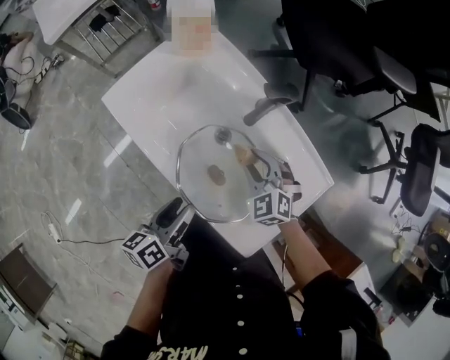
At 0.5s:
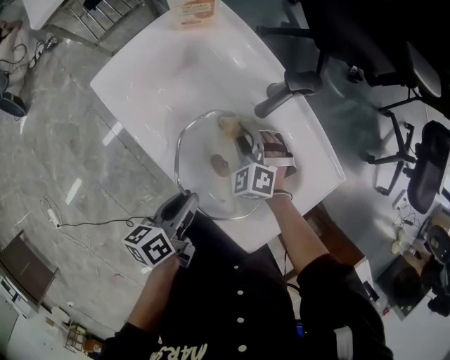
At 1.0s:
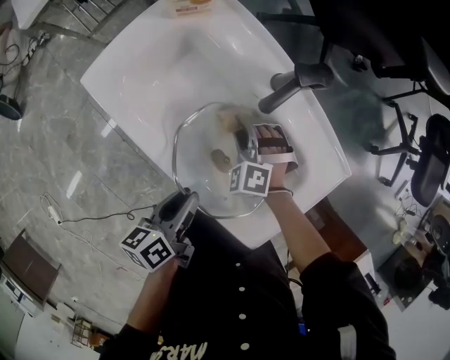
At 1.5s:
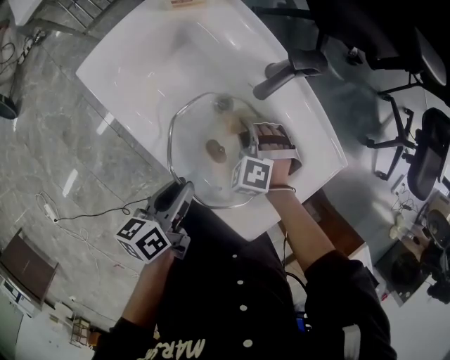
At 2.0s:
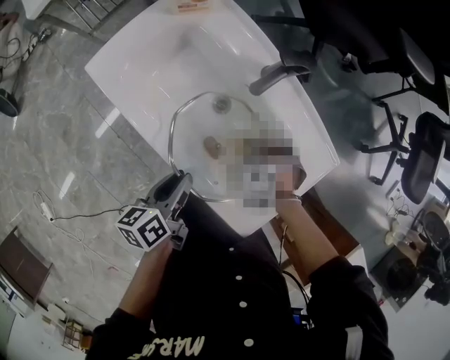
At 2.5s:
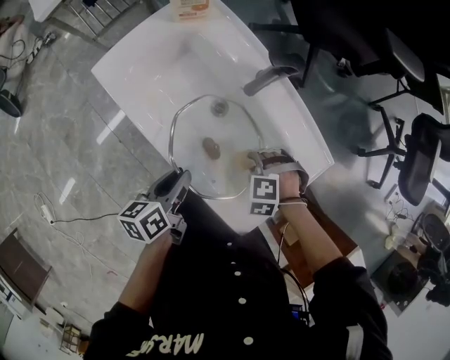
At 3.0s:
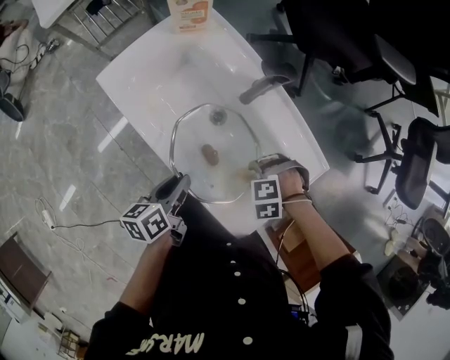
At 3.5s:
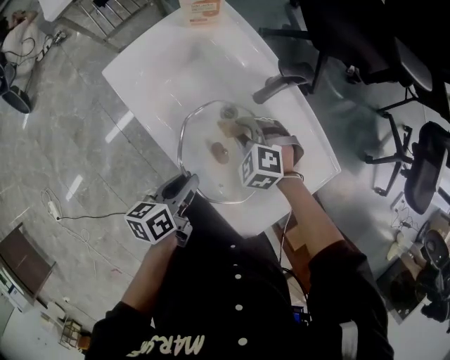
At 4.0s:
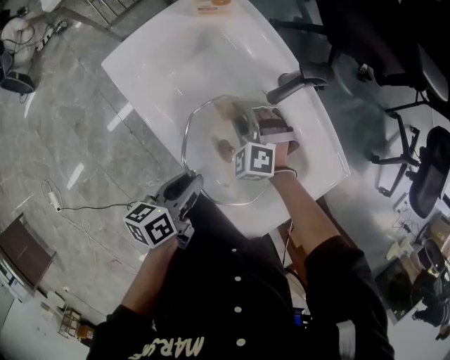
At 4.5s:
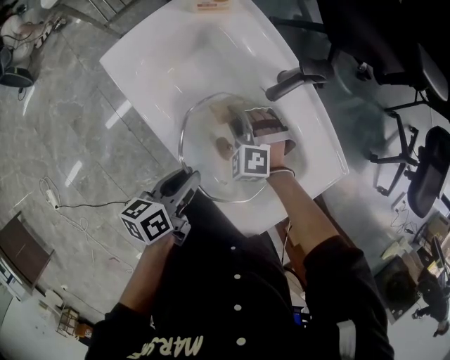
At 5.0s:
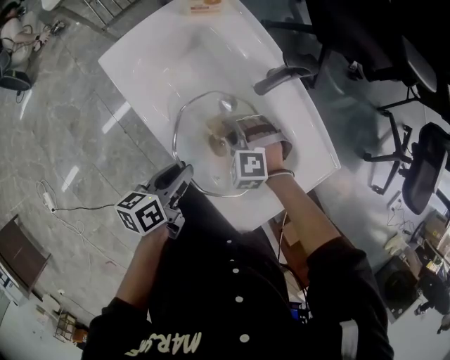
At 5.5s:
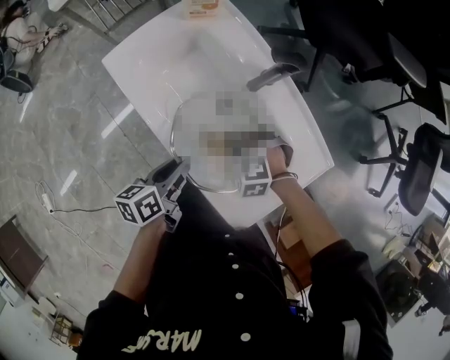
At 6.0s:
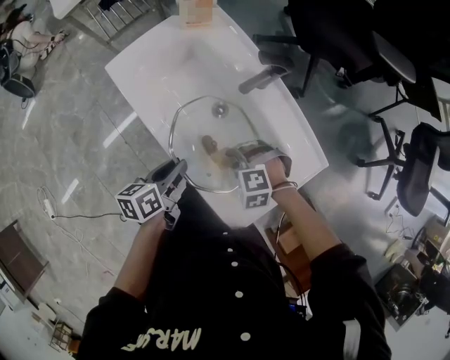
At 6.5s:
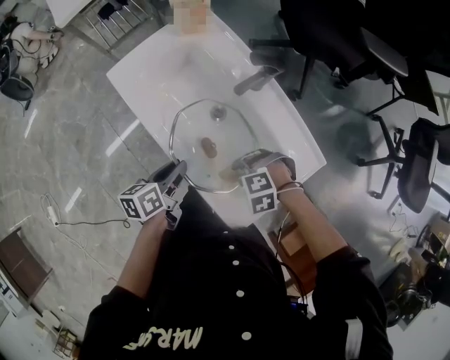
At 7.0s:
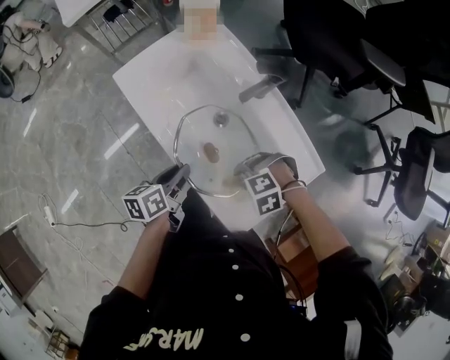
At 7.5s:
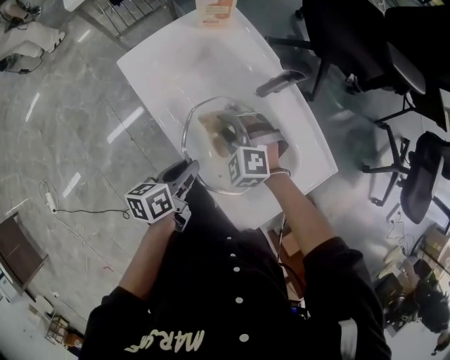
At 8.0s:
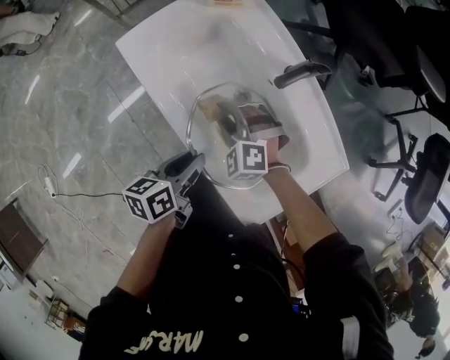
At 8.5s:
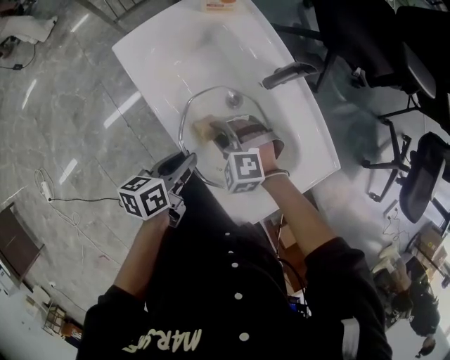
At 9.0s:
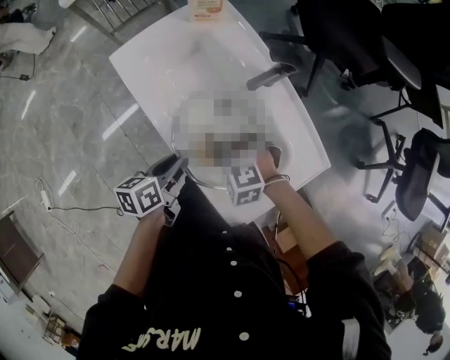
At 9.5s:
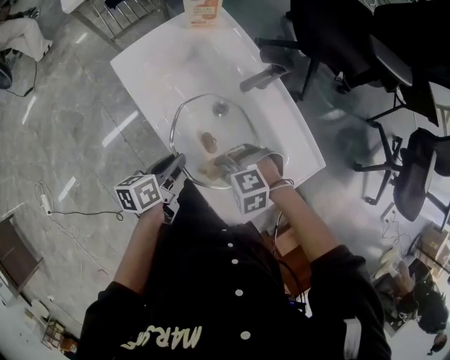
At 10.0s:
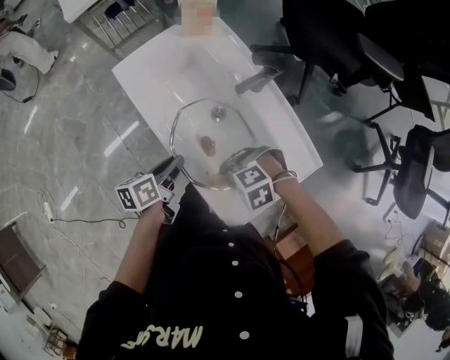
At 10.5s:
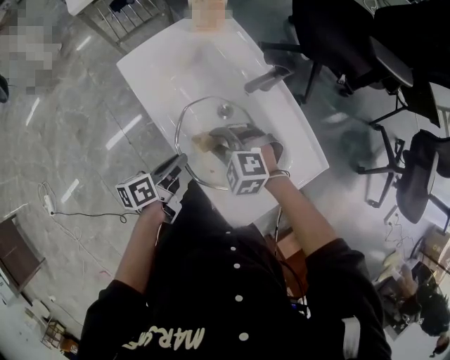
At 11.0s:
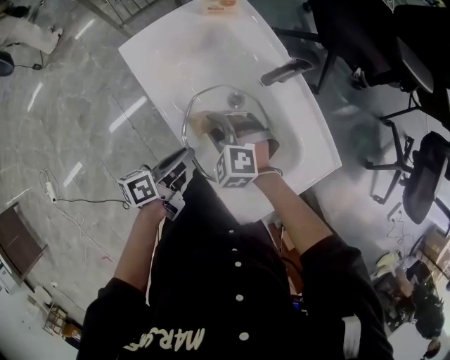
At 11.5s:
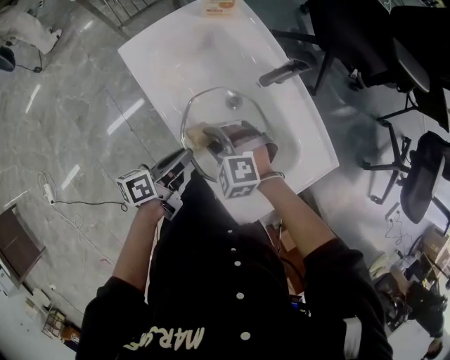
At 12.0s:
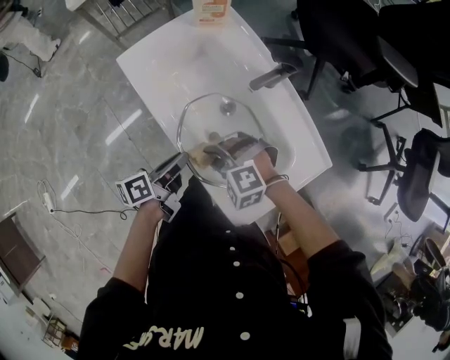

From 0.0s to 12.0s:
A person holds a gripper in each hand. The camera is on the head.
From 0.0s to 2.0s: The left gripper closes up, while the right gripper heads downward, covering some 10 cm, and tips its fingers downward by approximately 30 degrees.
From 2.0s to 4.0s: The right gripper ends up roughly 15 cm from where it was, and swivels some 30 degrees.
From 4.0s to 6.0s: The right gripper moves backward, roughly 15 cm, and rotates approximately 30 degrees.
From 6.0s to 8.0s: The right gripper ends up about 15 cm from where it was, and rotates about 30 degrees.
From 8.0s to 10.0s: The right gripper ends up approximately 20 cm from where it was, and turns by approximately 50 degrees.
From 10.0s to 12.0s: The right gripper swivels approximately 20 degrees.

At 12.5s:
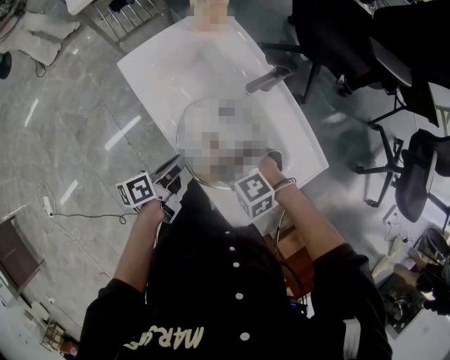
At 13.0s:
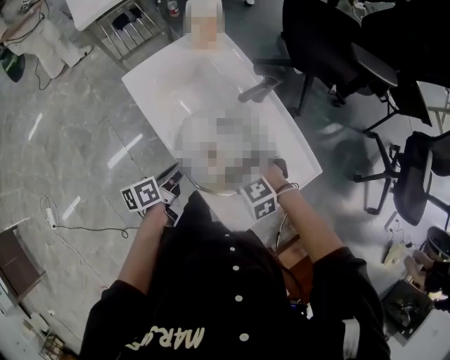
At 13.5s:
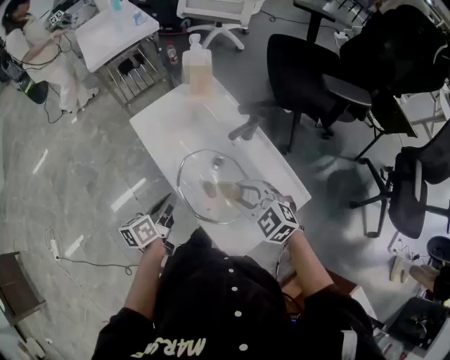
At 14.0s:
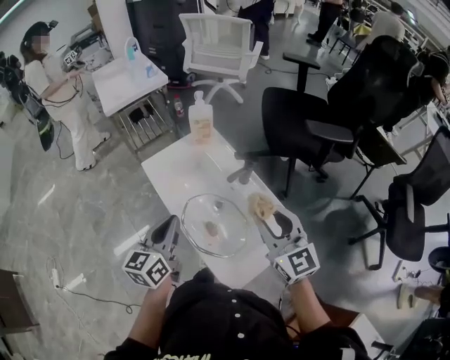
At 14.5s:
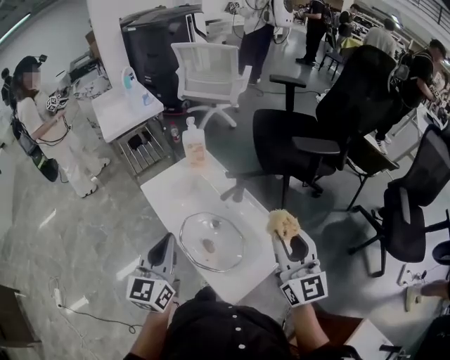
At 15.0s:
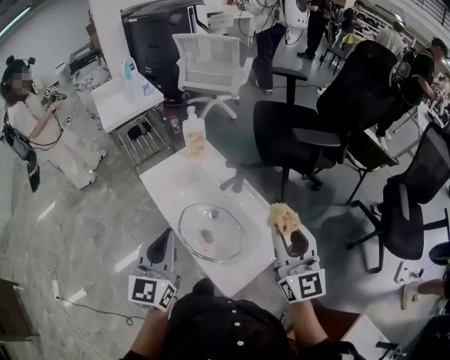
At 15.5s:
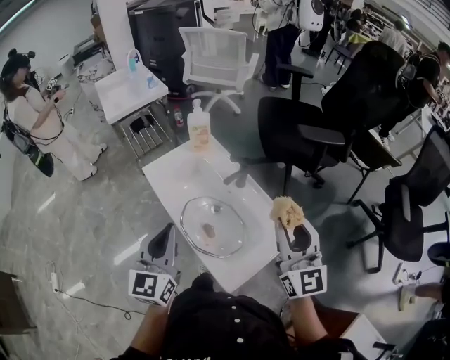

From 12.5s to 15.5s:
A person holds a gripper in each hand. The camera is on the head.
From 12.5s to 14.0s: Both grippers move upward, about 25 cm. The right gripper points its fingers approximately 60 degrees further upward. Meanwhile the left gripper rotates around the line of its fingers by roughly 50 degrees, clockwise from behind.
From 14.0s to 15.5s: The left gripper moves upward and backward, some 10 cm, and turns by roughly 20 degrees, while the right gripper is displaced to the right, upward and backward by roughly 10 cm.

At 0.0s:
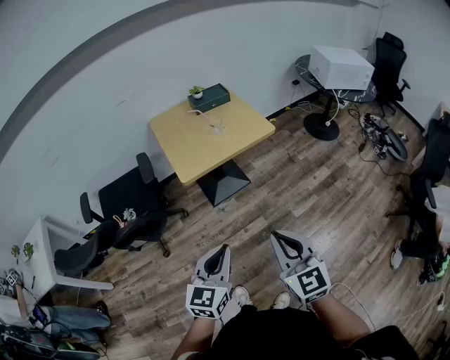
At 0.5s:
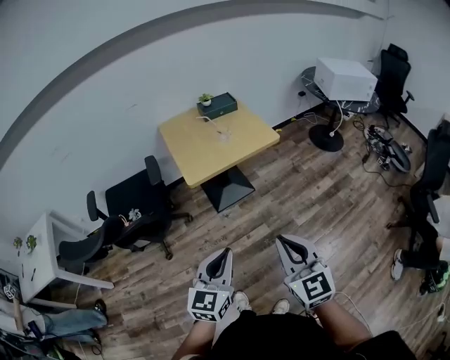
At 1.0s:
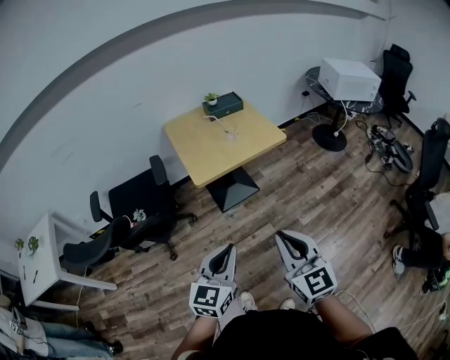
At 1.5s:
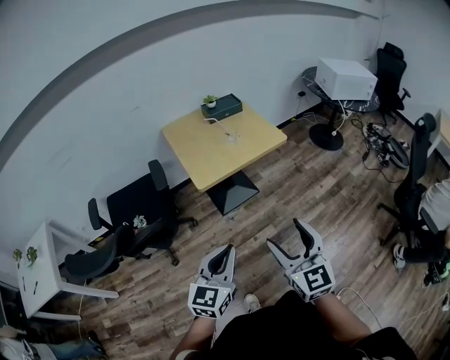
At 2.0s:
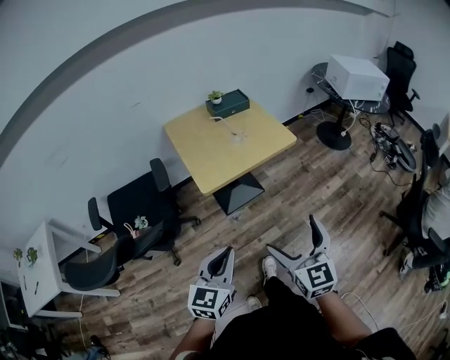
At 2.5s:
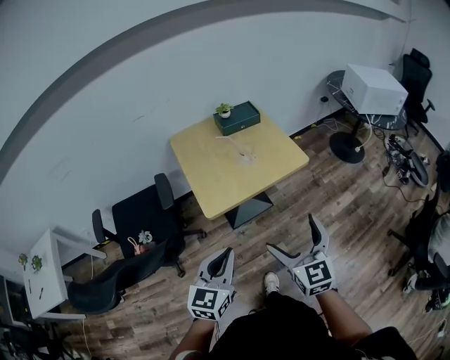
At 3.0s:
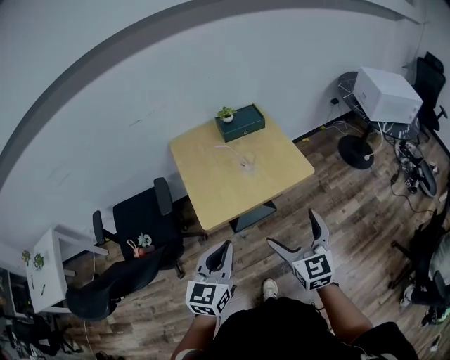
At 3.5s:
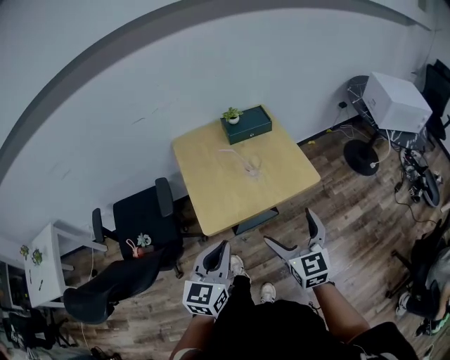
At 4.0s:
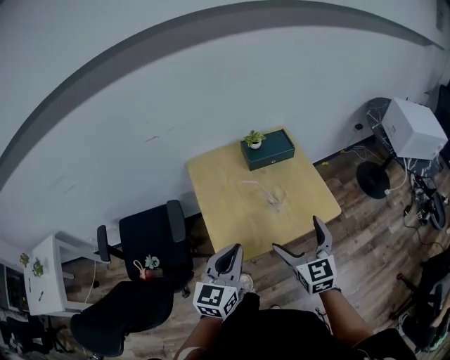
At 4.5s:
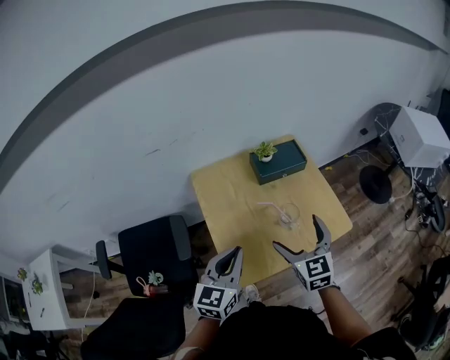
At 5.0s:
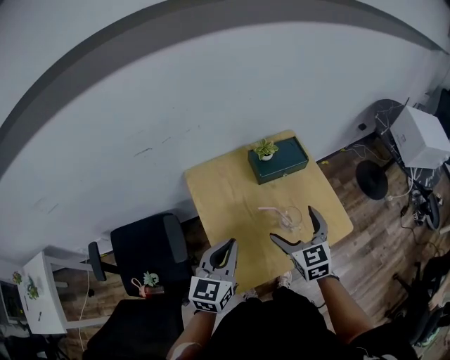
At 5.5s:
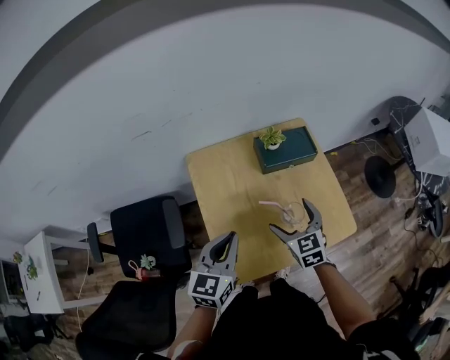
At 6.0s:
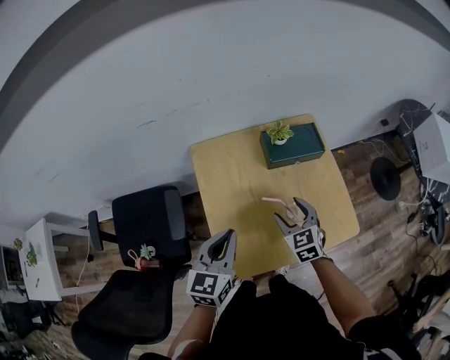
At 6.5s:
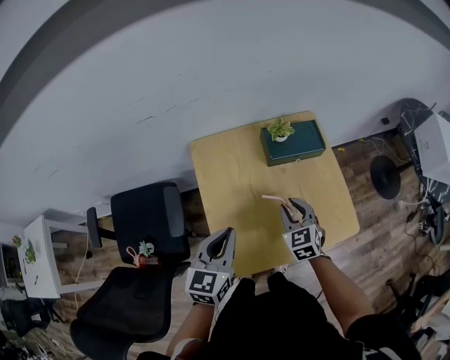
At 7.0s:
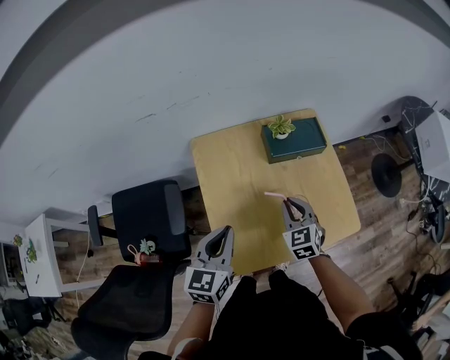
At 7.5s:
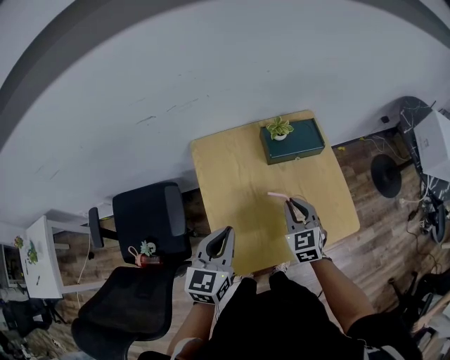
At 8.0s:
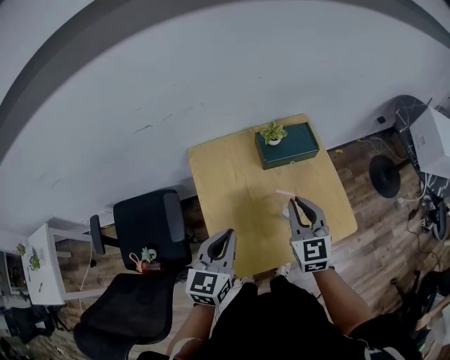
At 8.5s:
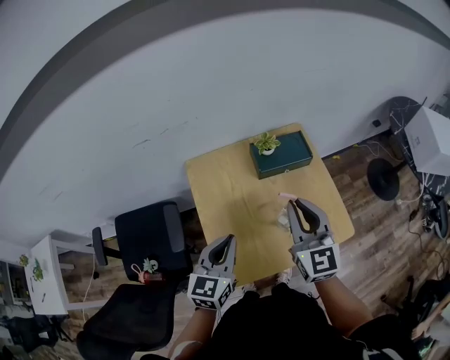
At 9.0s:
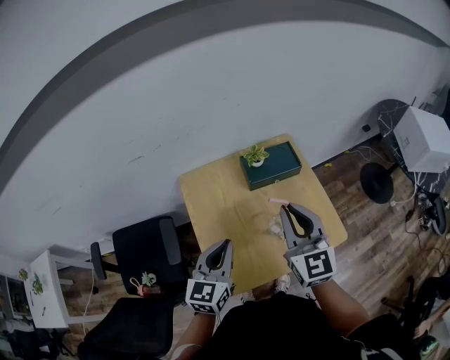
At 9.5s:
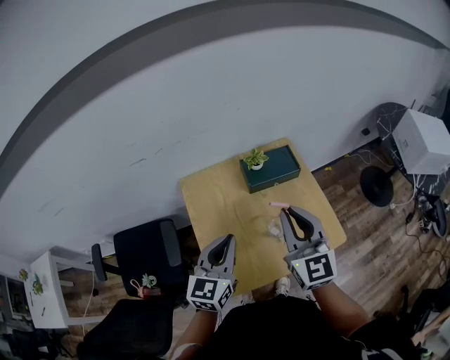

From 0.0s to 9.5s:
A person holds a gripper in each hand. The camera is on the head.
From 0.0s to 2.0s: The right gripper heads forward, covering about 10 cm, and opens its fingers. Meanwhile the left gripper goes some 10 cm to the left and forward.
From 2.0s to 4.0s: The grippers both shift forward by roughly 40 cm.
From 4.0s to 5.5s: The right gripper goes roughly 25 cm forward and downward. Meanwhile the left gripper moves forward, some 15 cm.
From 5.5s to 7.5s: The right gripper closes its fingers.
From 7.5s to 9.5s: The left gripper is displaced upward and to the right by roughly 10 cm, while the right gripper is displaced upward by roughly 20 cm, and changes its angle by approximately 30 degrees.

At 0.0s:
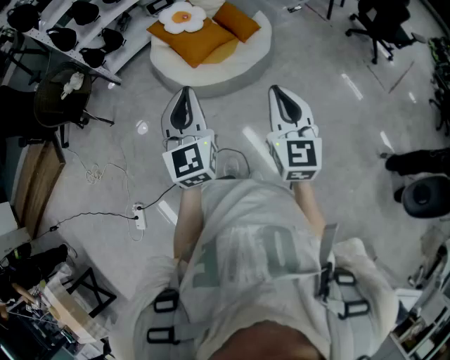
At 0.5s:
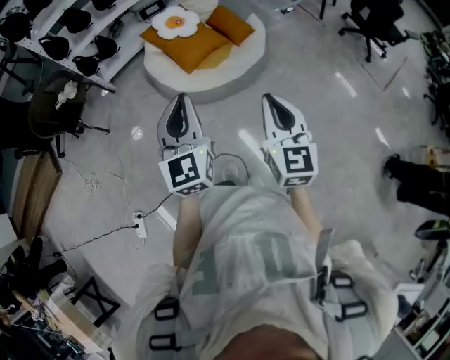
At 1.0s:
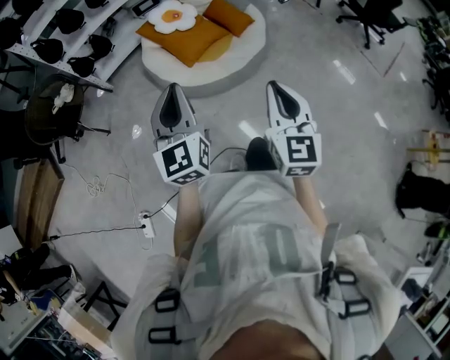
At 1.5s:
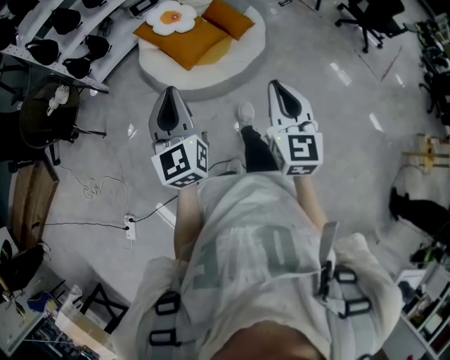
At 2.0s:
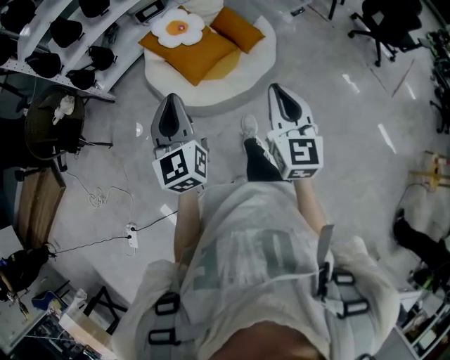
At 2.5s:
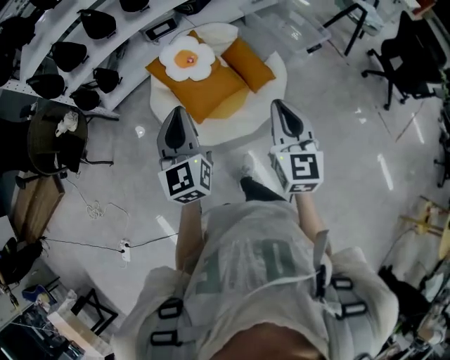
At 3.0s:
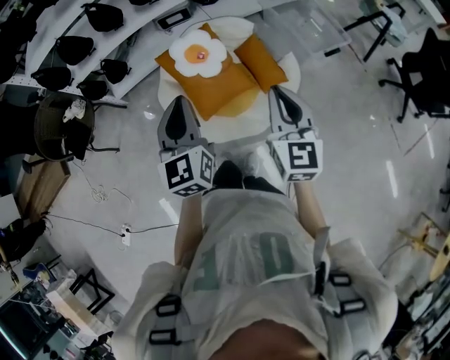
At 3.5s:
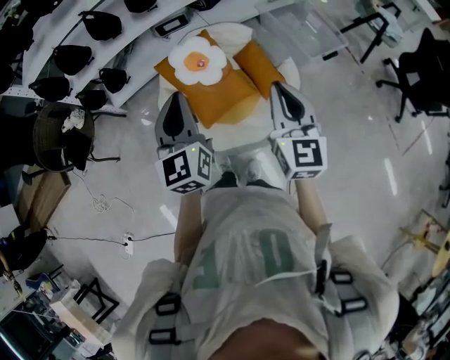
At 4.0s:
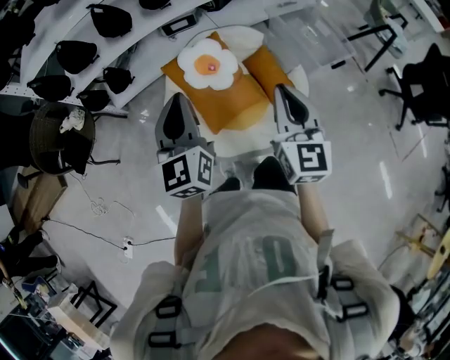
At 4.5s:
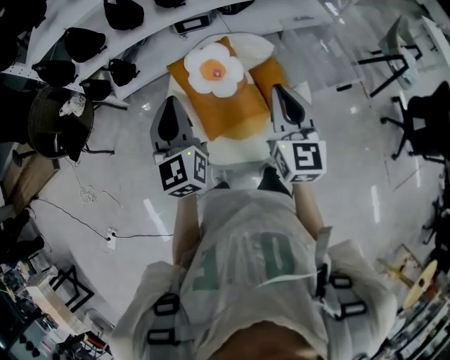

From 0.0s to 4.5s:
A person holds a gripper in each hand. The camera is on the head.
From 0.0s to 2.0s: Both grippers travel together forward, about 20 cm.
From 2.0s to 4.5s: The two grippers go approximately 40 cm forward.
